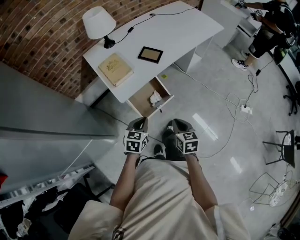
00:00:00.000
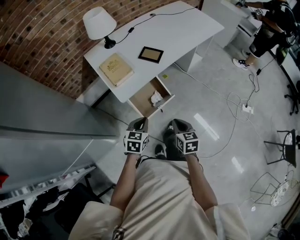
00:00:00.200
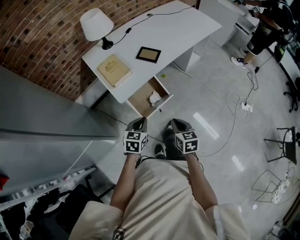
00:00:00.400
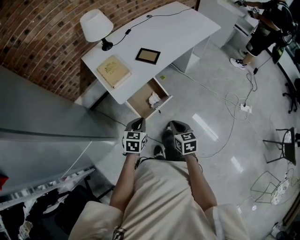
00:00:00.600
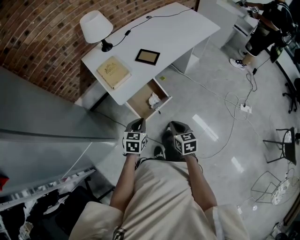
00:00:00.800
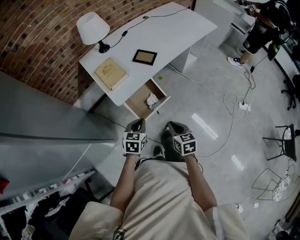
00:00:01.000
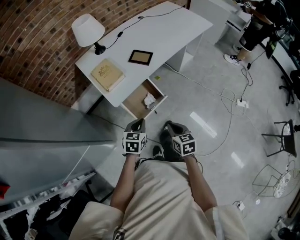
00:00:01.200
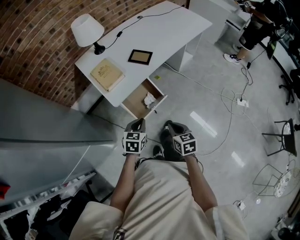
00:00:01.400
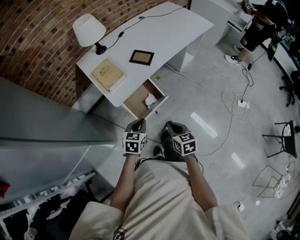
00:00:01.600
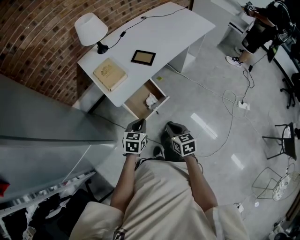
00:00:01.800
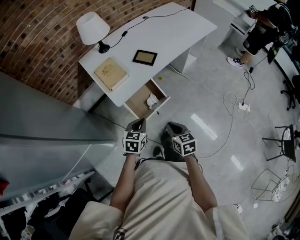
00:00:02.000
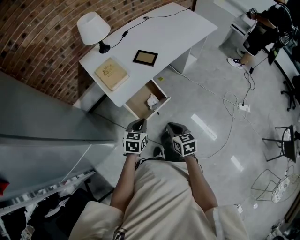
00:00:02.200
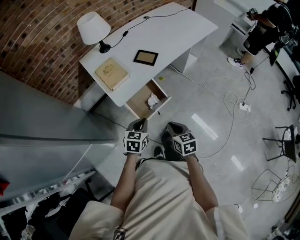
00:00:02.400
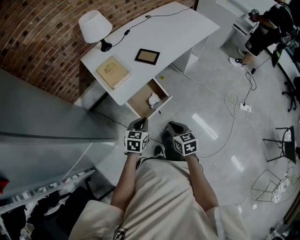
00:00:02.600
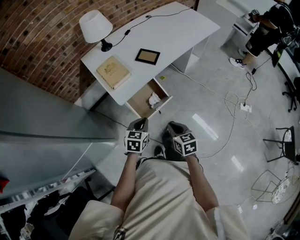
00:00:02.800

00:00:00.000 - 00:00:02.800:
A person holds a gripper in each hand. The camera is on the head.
00:00:00.000 - 00:00:02.800: The grippers make only small movements.

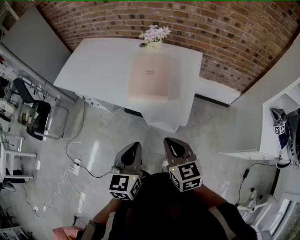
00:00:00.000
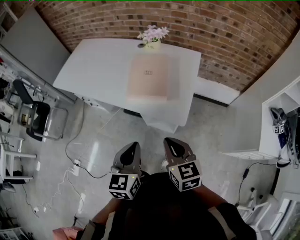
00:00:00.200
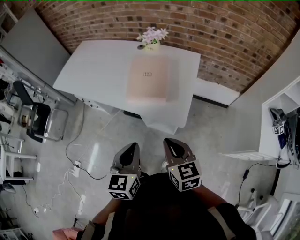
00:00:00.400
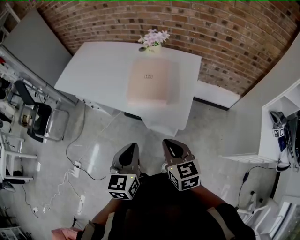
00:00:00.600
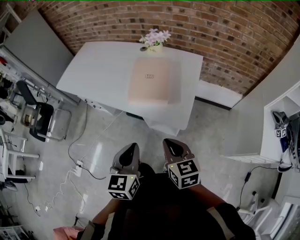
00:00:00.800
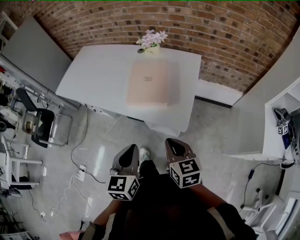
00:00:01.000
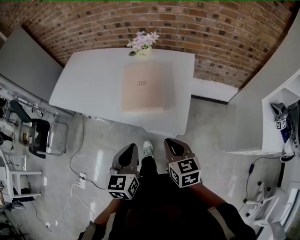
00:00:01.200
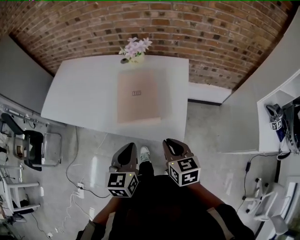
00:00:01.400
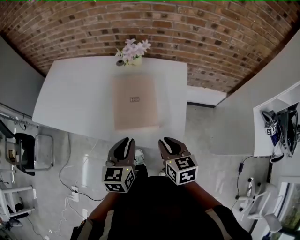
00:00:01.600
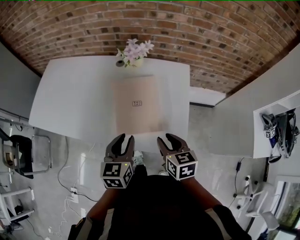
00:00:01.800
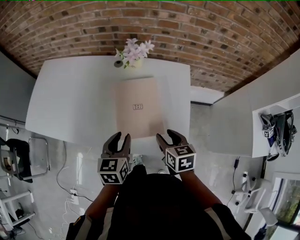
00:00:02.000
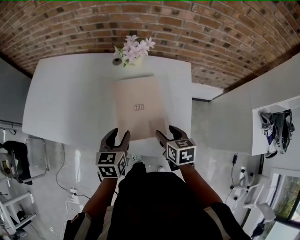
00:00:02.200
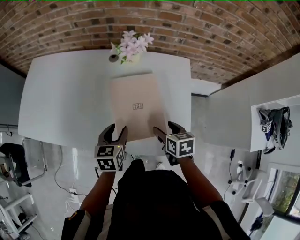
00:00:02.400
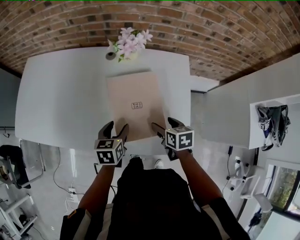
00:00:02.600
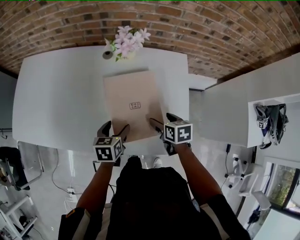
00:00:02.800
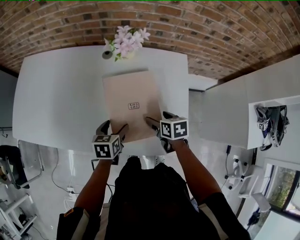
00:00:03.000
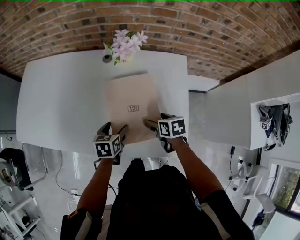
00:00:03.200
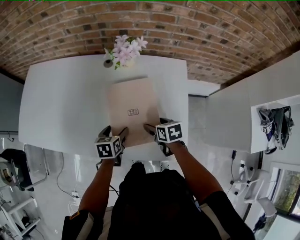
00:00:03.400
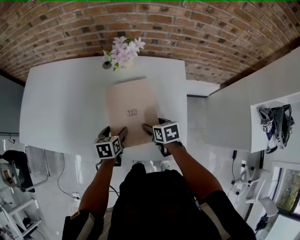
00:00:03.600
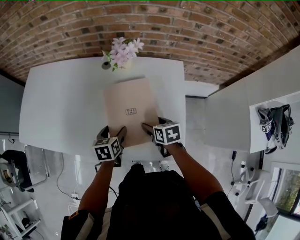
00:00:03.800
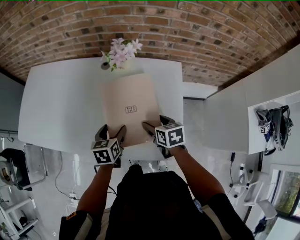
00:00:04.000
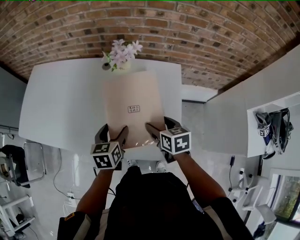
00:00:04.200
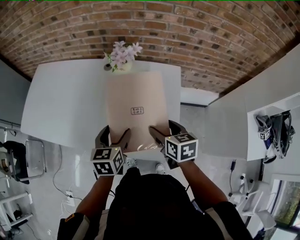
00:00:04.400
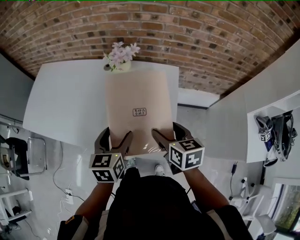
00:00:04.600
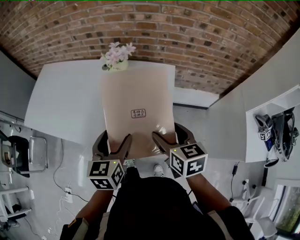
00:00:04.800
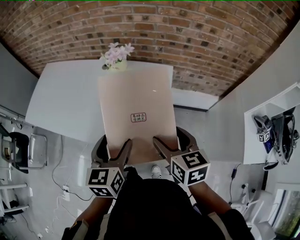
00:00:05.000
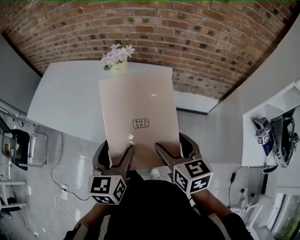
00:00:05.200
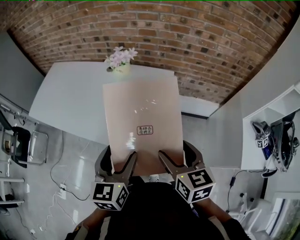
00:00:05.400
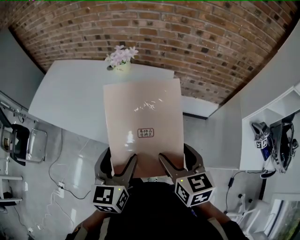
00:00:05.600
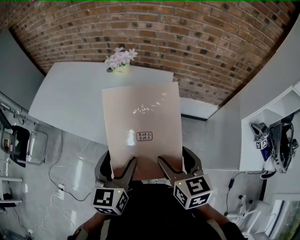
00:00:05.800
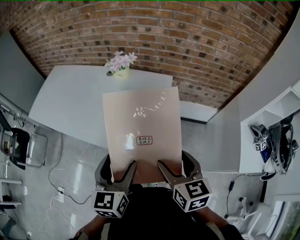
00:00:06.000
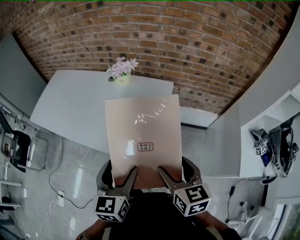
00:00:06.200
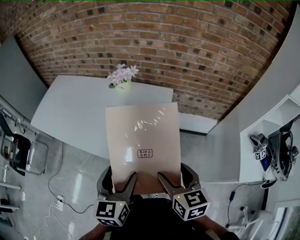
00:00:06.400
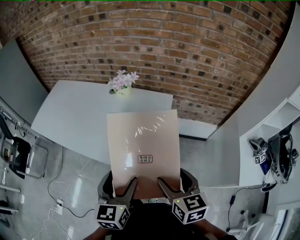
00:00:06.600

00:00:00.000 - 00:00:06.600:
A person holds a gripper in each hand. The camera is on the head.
00:00:00.000 - 00:00:01.600: The grippers both shift forward by approximately 20 cm.
00:00:01.600 - 00:00:03.200: The left gripper goes about 25 cm downward and forward, swivels roughly 30 degrees, and opens, while the right gripper goes approximately 25 cm forward and downward, swivels roughly 30 degrees, and opens up.
00:00:03.200 - 00:00:05.000: The two grippers go roughly 30 cm upward, backward and to the right. The right gripper turns by about 30 degrees, while the left gripper rotates some 30 degrees.
00:00:05.000 - 00:00:06.600: The grippers both shift backward by approximately 10 cm.

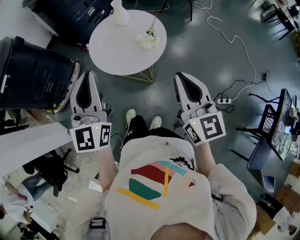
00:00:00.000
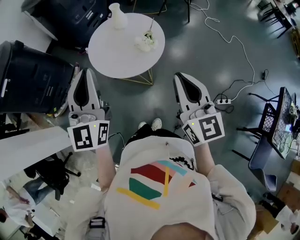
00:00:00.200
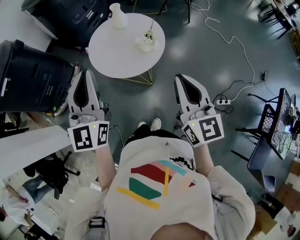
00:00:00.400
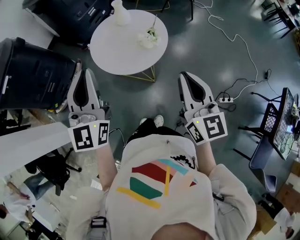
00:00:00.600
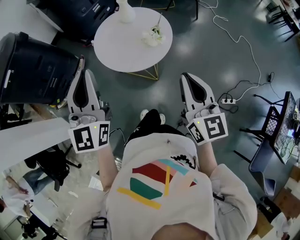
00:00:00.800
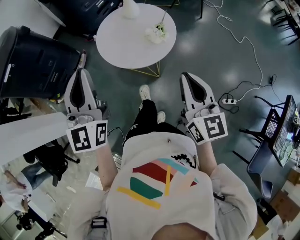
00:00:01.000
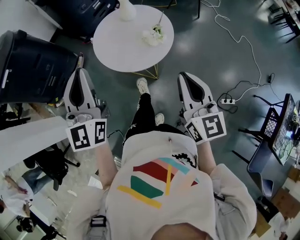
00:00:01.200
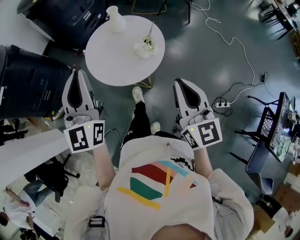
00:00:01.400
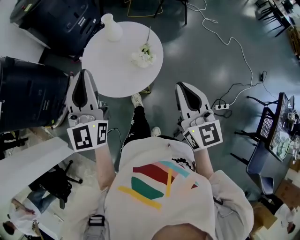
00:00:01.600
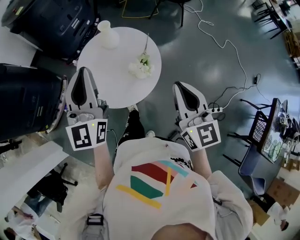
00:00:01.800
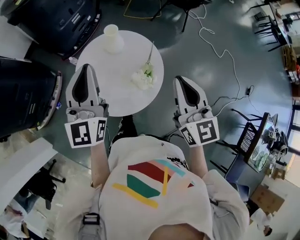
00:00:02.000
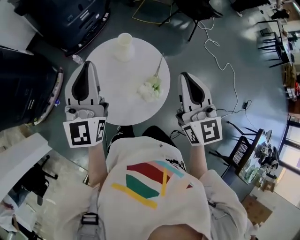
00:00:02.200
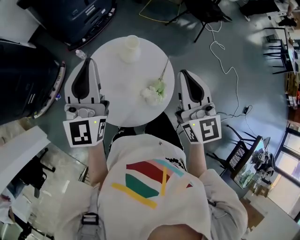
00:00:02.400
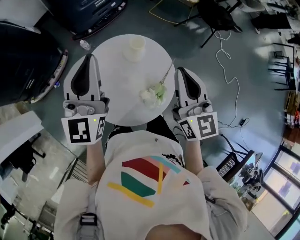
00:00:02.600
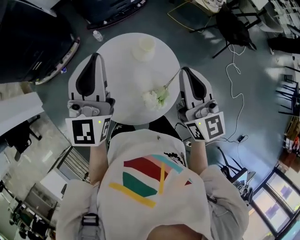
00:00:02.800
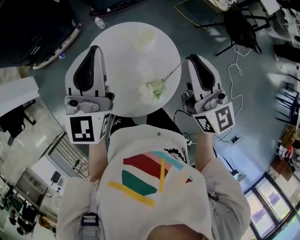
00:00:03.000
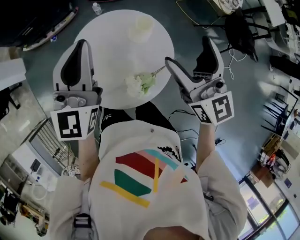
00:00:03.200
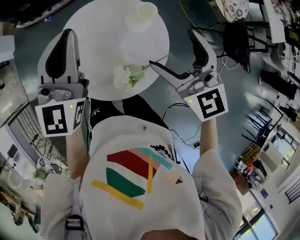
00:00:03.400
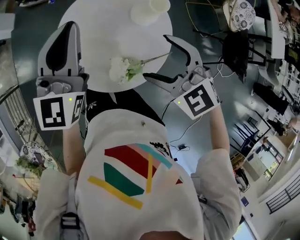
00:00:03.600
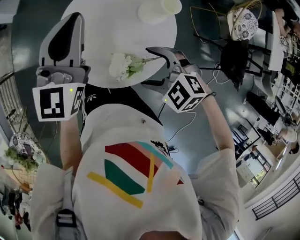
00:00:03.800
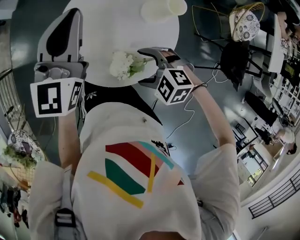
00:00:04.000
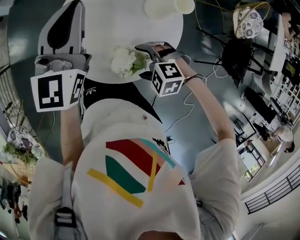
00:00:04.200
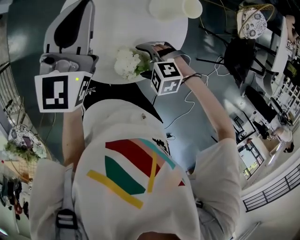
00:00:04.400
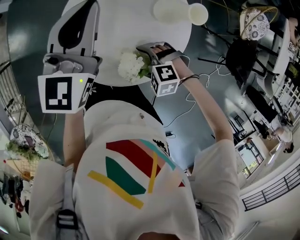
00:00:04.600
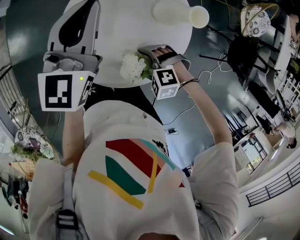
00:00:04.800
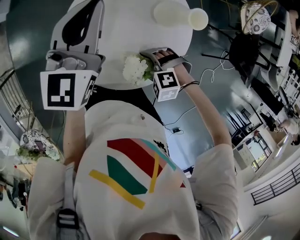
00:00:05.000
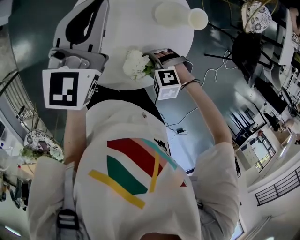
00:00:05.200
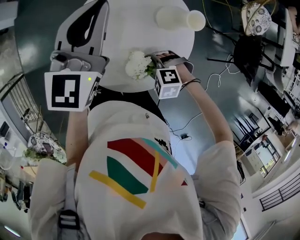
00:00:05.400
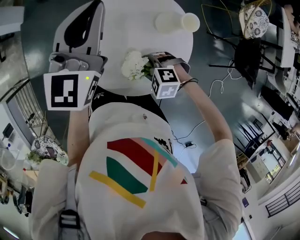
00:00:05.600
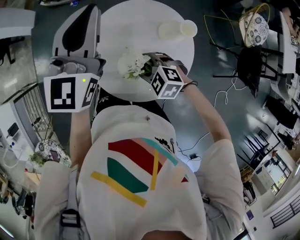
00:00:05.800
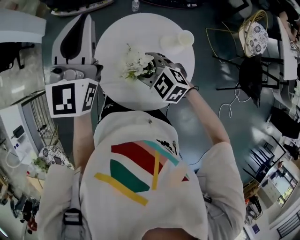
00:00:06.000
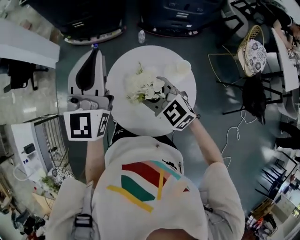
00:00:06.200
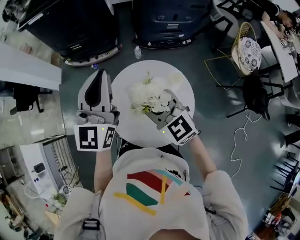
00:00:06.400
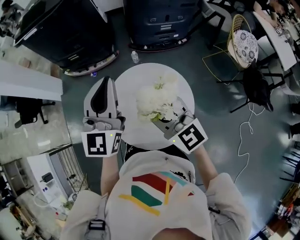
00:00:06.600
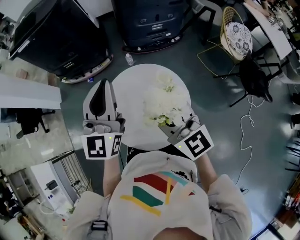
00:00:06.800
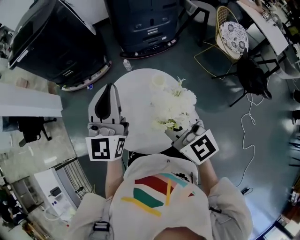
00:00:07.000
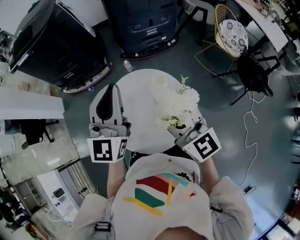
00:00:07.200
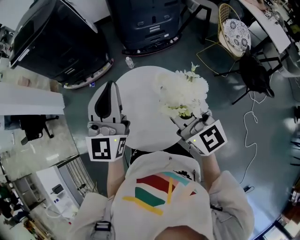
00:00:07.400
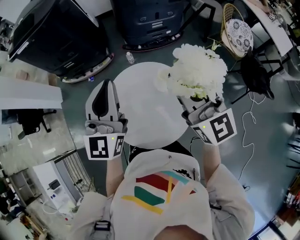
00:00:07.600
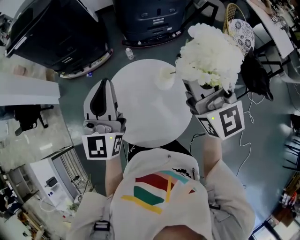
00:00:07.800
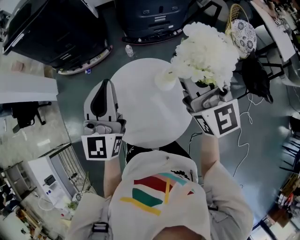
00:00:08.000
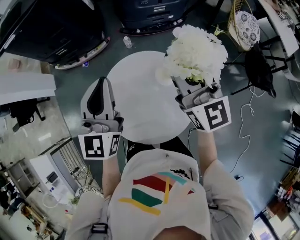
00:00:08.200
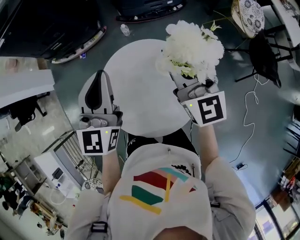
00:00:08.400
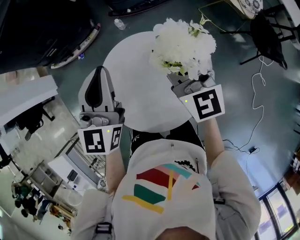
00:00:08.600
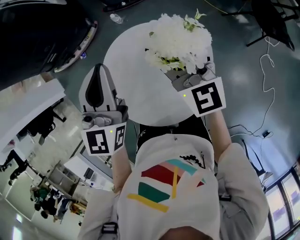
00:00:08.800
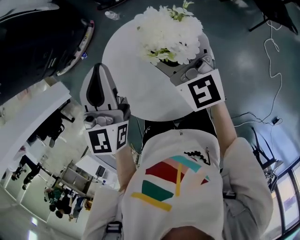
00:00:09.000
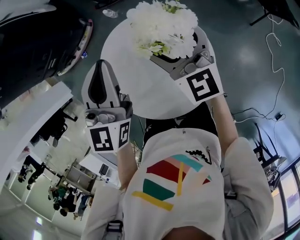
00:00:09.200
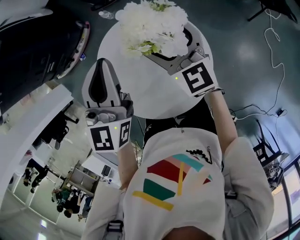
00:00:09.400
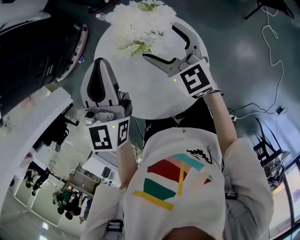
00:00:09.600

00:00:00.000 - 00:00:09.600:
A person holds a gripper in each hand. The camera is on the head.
00:00:00.000 - 00:00:01.600: Both grippers move forward, about 10 cm.
00:00:01.600 - 00:00:03.200: The right gripper changes place by about 40 cm, changes its angle by roughly 50 degrees, and opens. The left gripper shifts by approximately 20 cm, and rotates roughly 30 degrees.
00:00:03.200 - 00:00:04.800: The right gripper goes about 35 cm downward, and points its fingers approximately 70 degrees further downward, while the left gripper shifts roughly 10 cm downward.
00:00:04.800 - 00:00:06.400: The right gripper shifts roughly 30 cm upward, points its fingers about 60 degrees further upward, and closes; the left gripper shifts roughly 20 cm upward, and changes its angle by roughly 20 degrees.
00:00:06.400 - 00:00:08.000: The right gripper goes approximately 25 cm to the right, upward and forward, and rotates about 40 degrees.
00:00:08.000 - 00:00:09.600: The left gripper moves downward, to the right and forward, approximately 15 cm, and turns by some 20 degrees, while the right gripper moves downward, some 30 cm, angles its fingers downward, by some 30 degrees, and opens.

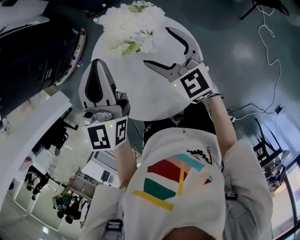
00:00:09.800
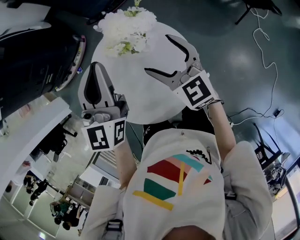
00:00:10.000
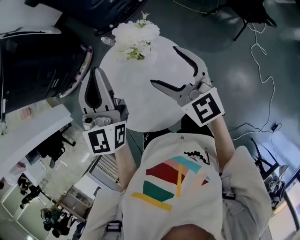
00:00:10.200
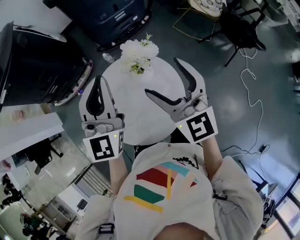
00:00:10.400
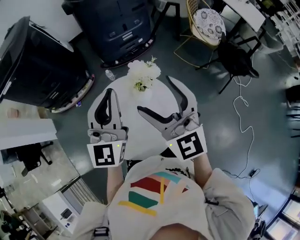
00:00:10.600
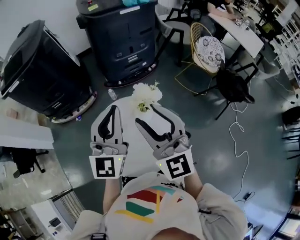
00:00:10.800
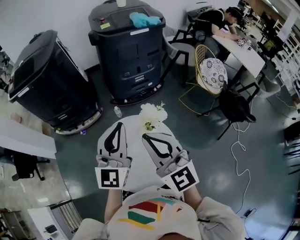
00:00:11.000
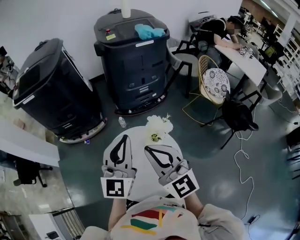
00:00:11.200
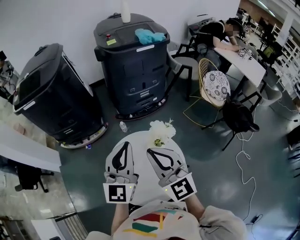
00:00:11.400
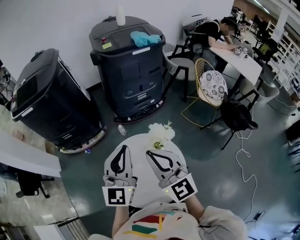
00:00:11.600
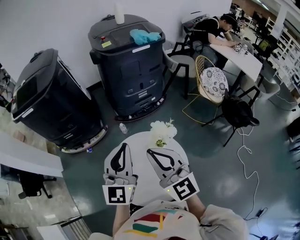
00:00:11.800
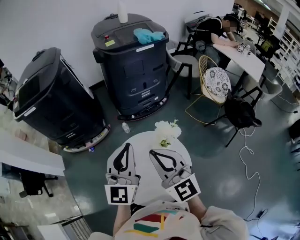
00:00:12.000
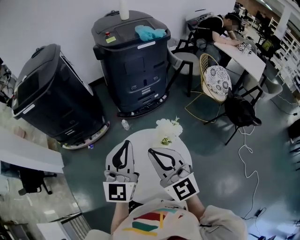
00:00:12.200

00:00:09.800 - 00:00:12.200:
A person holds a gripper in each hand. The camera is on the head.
00:00:09.800 - 00:00:11.000: The right gripper heads upward, covering approximately 25 cm, turns by about 30 degrees, and closes. Meanwhile the left gripper goes some 15 cm upward, and swivels about 20 degrees.
00:00:11.000 - 00:00:12.200: The right gripper moves about 5 cm, while the left gripper changes place by roughly 5 cm.

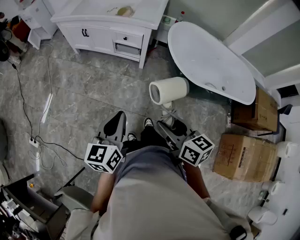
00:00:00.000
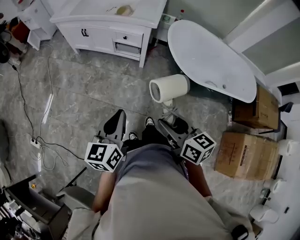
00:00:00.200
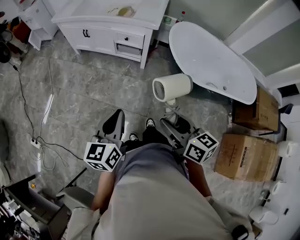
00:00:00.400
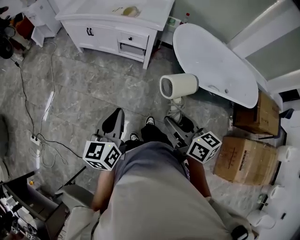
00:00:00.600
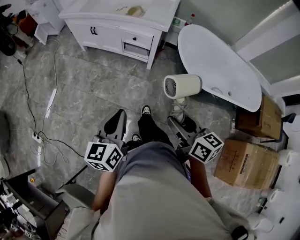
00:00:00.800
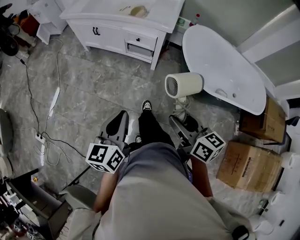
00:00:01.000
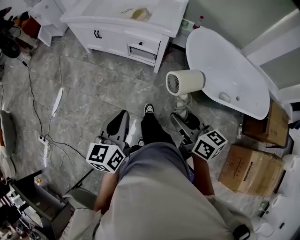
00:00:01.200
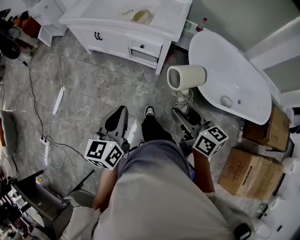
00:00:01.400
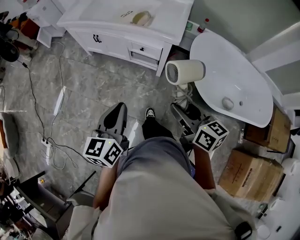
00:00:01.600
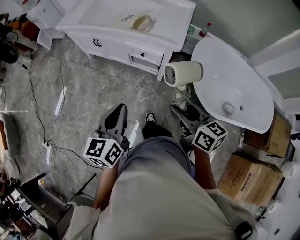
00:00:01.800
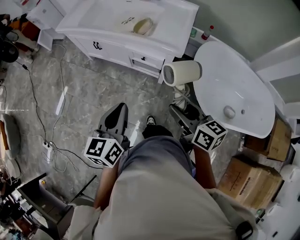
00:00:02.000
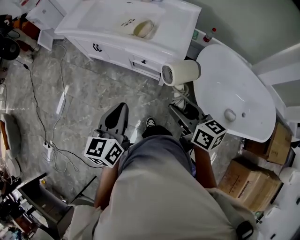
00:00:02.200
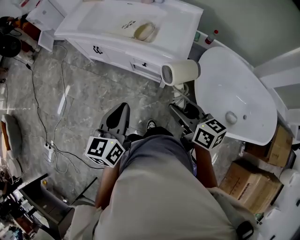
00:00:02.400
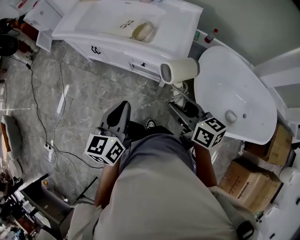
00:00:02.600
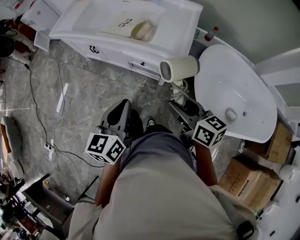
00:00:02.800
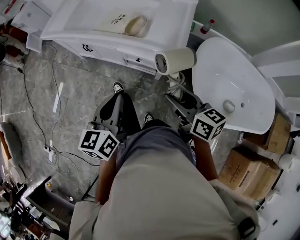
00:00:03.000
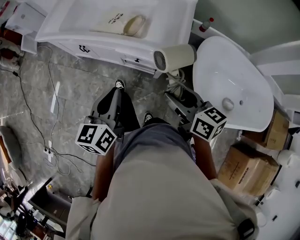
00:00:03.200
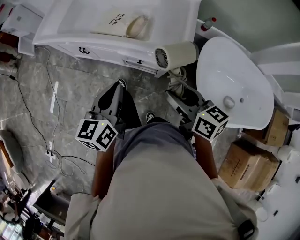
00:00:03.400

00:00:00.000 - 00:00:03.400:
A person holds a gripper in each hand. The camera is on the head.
00:00:00.000 - 00:00:01.600: Both grippers move forward, about 25 cm.
00:00:01.600 - 00:00:03.400: Both grippers travel together forward, roughly 30 cm.
